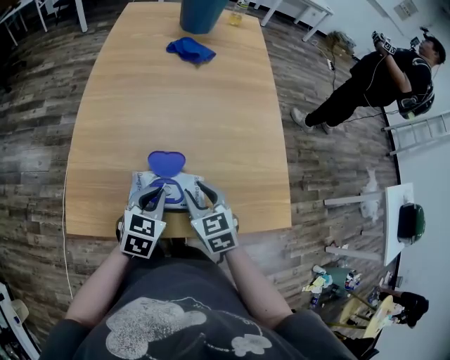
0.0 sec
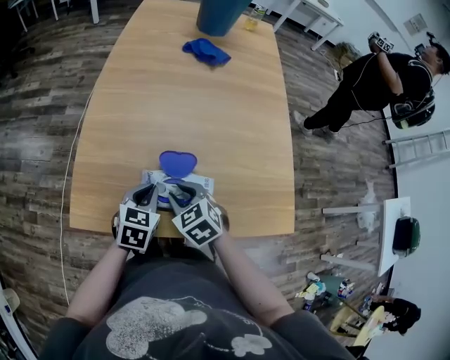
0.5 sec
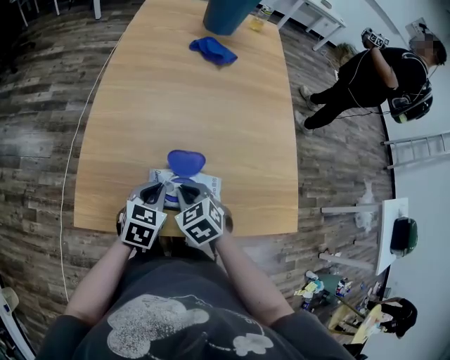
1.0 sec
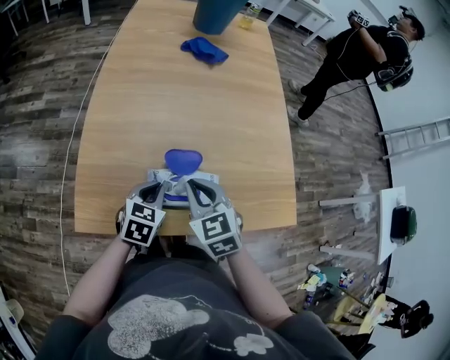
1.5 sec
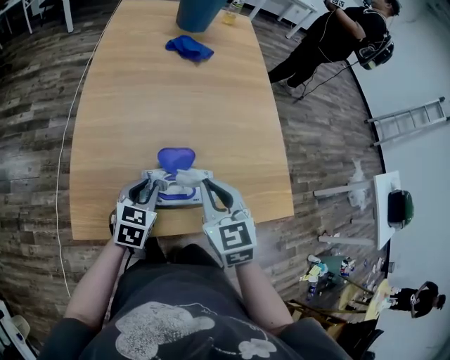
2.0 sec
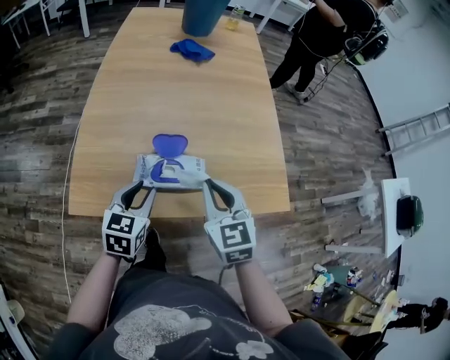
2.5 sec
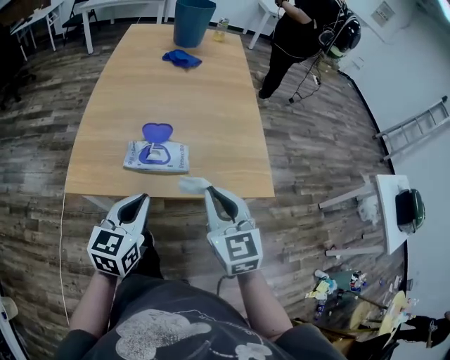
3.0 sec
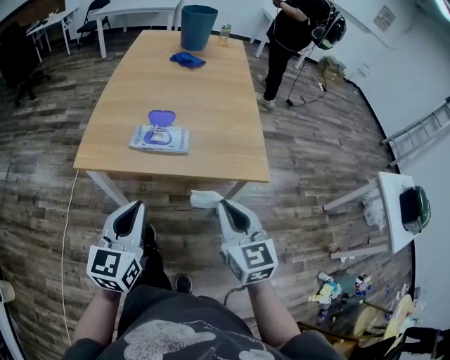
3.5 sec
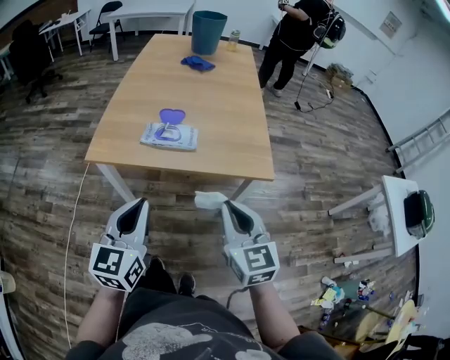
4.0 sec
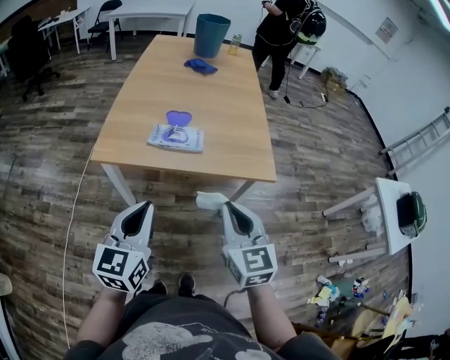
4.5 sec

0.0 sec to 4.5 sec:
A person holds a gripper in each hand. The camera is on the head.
0.0 sec to 2.0 sec: The right gripper moves upward, approximately 10 cm, and closes up, while the left gripper travels to the left by about 5 cm, and opens its fingers.
2.0 sec to 4.5 sec: The left gripper is displaced backward and upward by some 40 cm, changes its angle by about 30 degrees, and closes. Meanwhile the right gripper shifts some 30 cm backward.

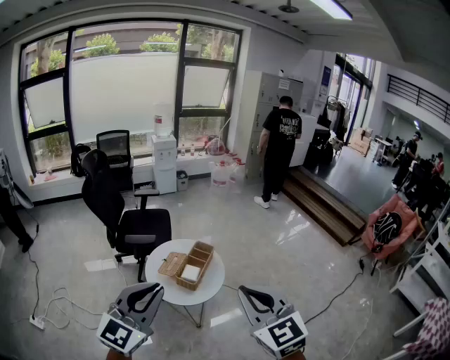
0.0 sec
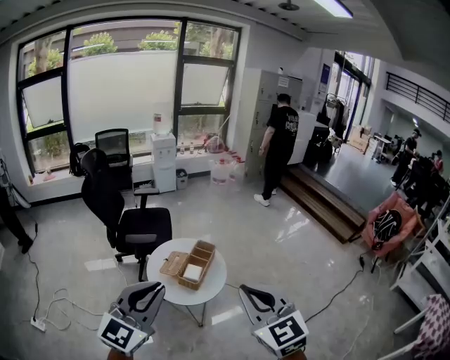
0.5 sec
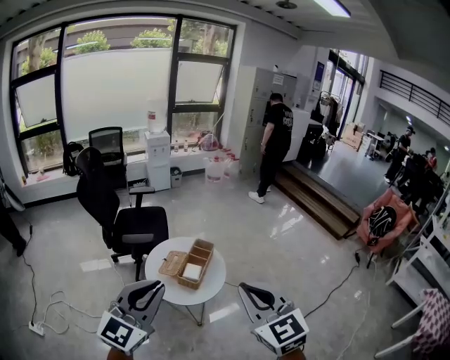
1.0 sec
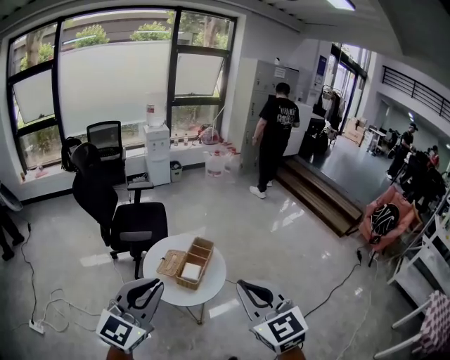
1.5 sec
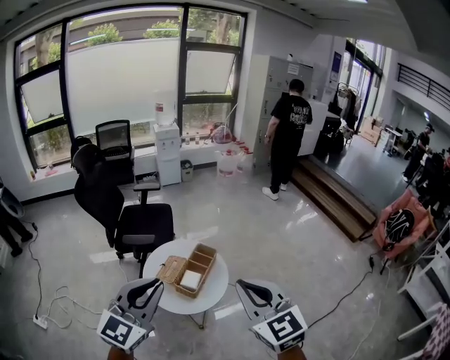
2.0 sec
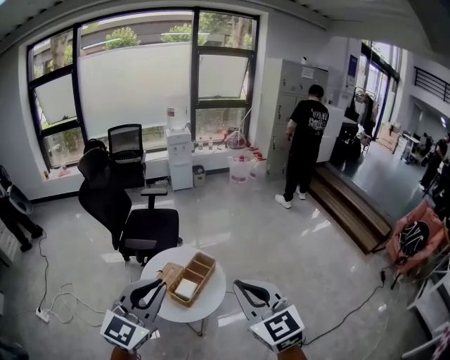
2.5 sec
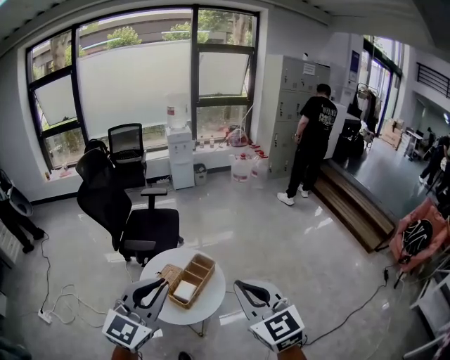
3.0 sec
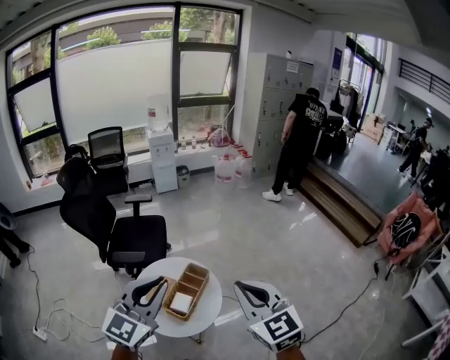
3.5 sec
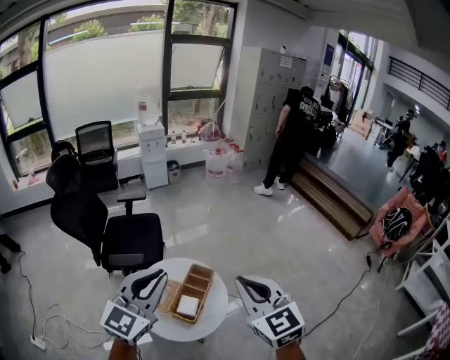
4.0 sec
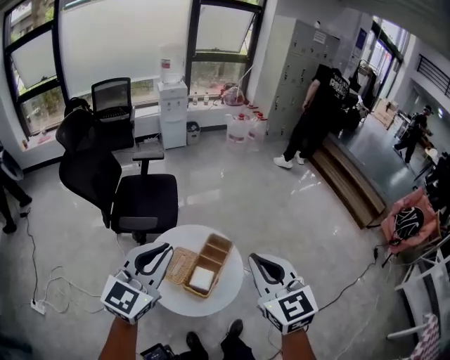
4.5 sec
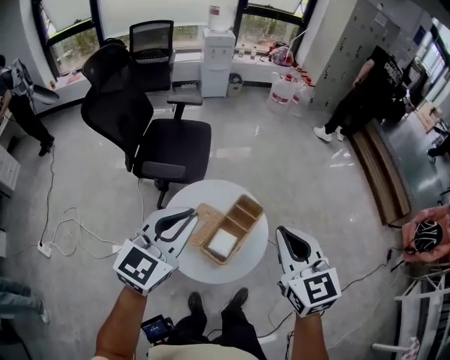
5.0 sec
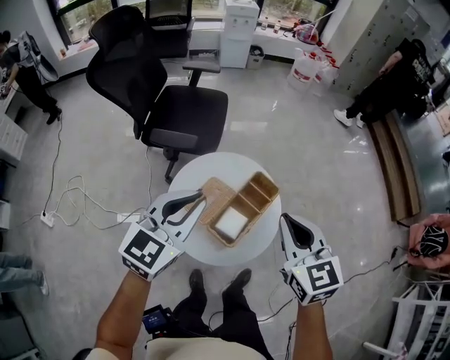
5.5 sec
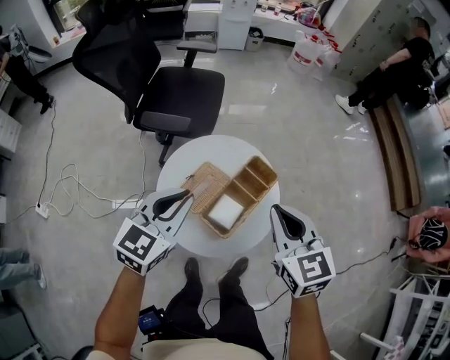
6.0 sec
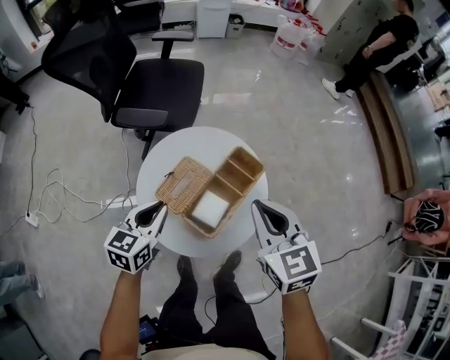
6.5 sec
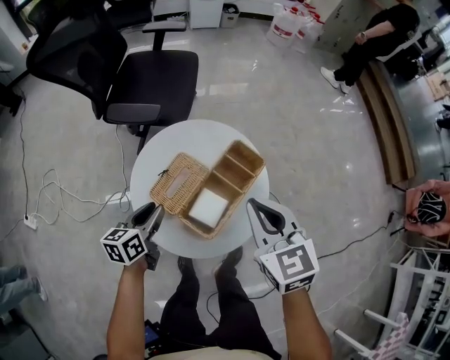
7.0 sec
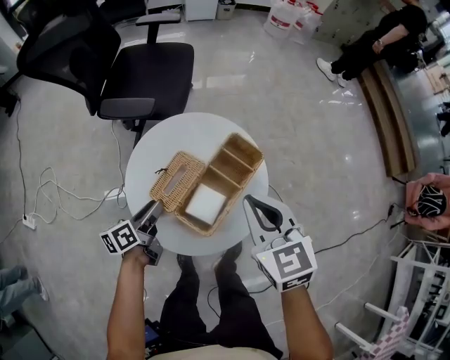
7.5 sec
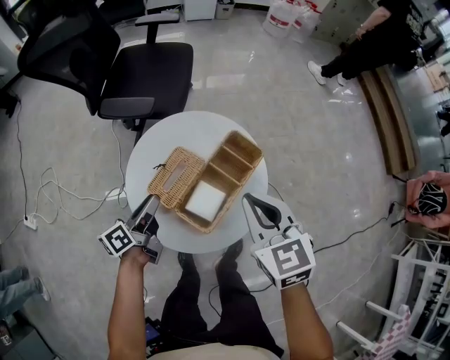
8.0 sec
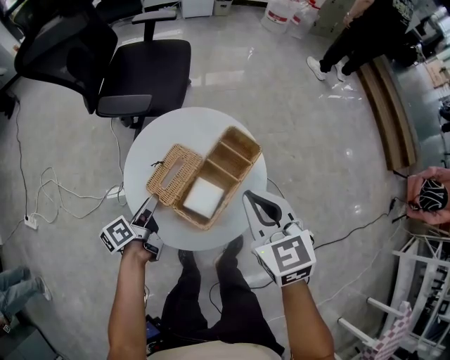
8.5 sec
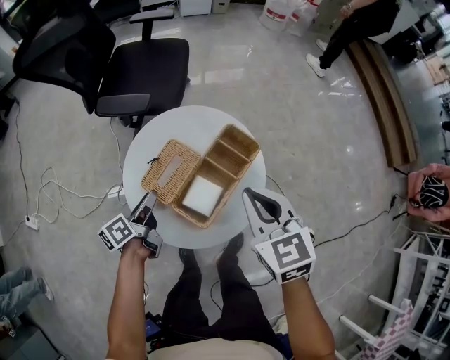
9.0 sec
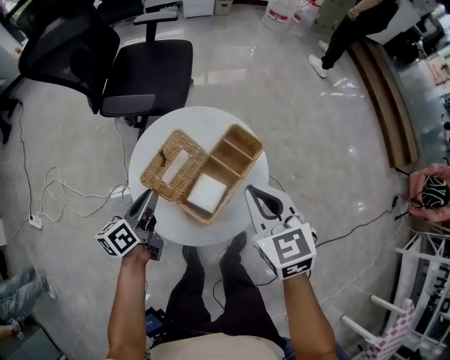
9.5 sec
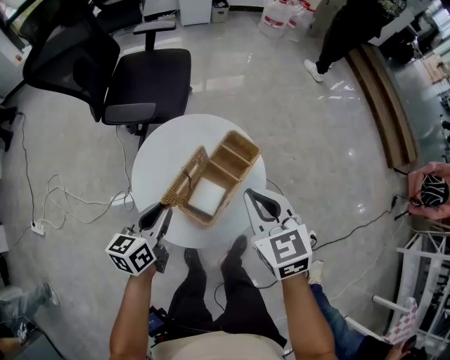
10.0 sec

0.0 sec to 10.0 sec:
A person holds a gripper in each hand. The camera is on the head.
0.0 sec to 2.0 sec: Both grippers move forward, some 15 cm.
2.0 sec to 4.0 sec: Both grippers move forward, some 20 cm.
4.0 sec to 6.0 sec: The right gripper travels downward and forward by roughly 30 cm; the left gripper heads downward, covering approximately 30 cm, and changes its angle by about 30 degrees.
6.0 sec to 8.0 sec: The right gripper goes roughly 10 cm downward. Meanwhile the left gripper heads downward, covering approximately 25 cm, rotates around the line of its fingers by approximately 60 degrees, counterclockwise from behind, and opens.
8.0 sec to 10.0 sec: The left gripper shifts about 5 cm upward, turns by roughly 30 degrees, and closes its fingers.

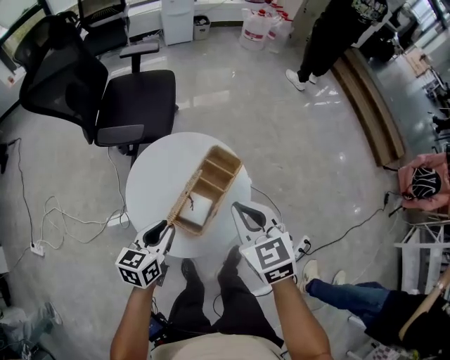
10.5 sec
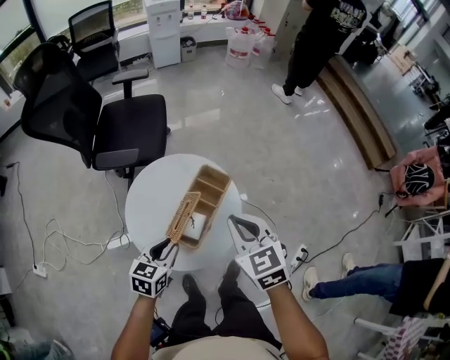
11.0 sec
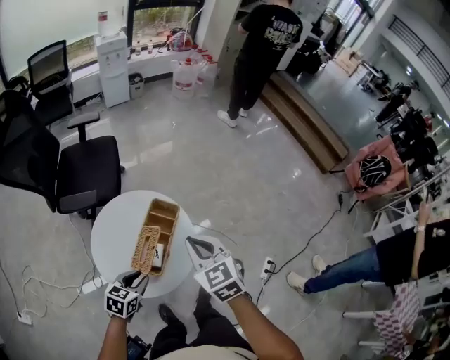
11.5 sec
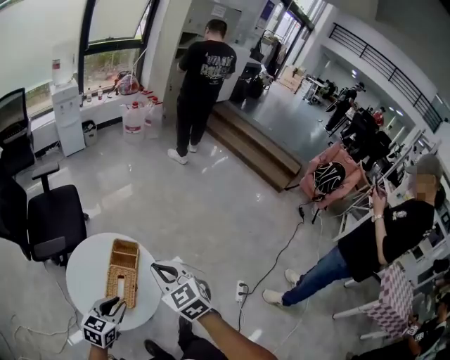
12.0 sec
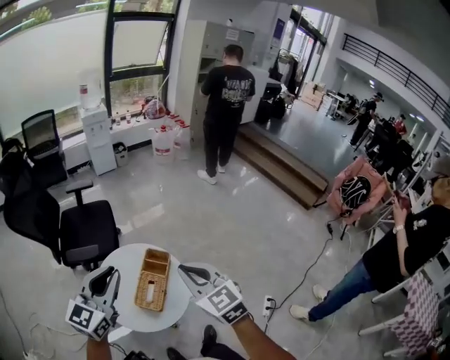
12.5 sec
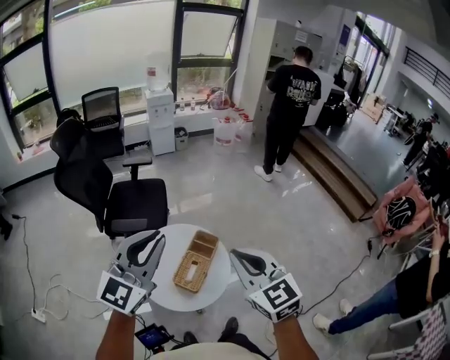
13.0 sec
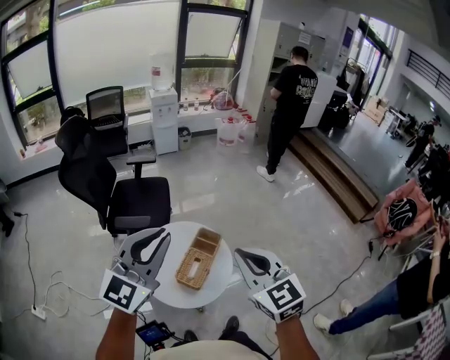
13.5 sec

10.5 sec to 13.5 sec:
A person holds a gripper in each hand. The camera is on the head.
10.5 sec to 12.0 sec: The right gripper shifts some 15 cm upward and to the right. Meanwhile the left gripper is displaced to the right and upward by about 15 cm, and changes its angle by about 30 degrees.
12.0 sec to 13.5 sec: The right gripper travels upward and backward by approximately 20 cm. The left gripper travels upward by some 35 cm, and tips its fingers upward by approximately 40 degrees.

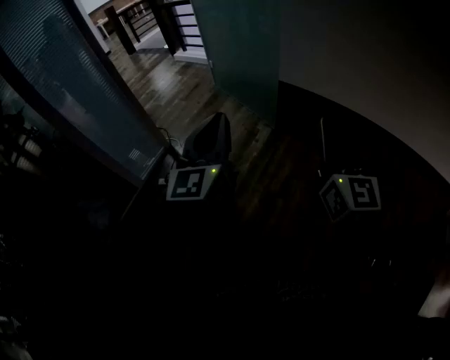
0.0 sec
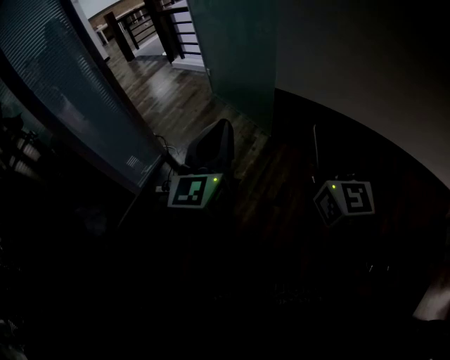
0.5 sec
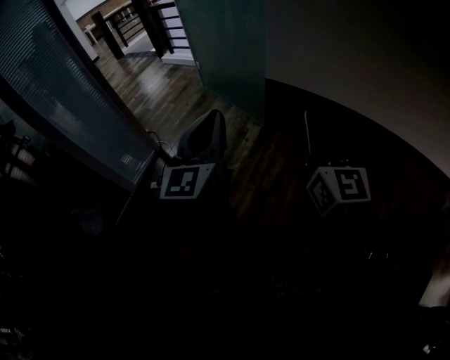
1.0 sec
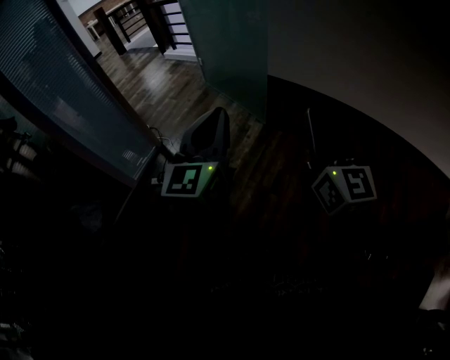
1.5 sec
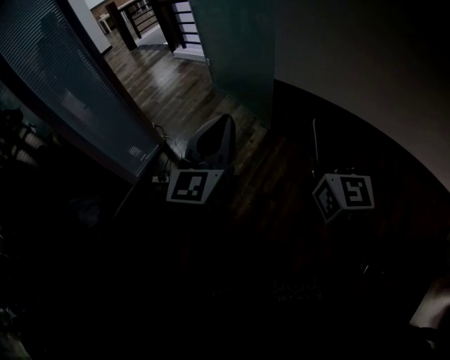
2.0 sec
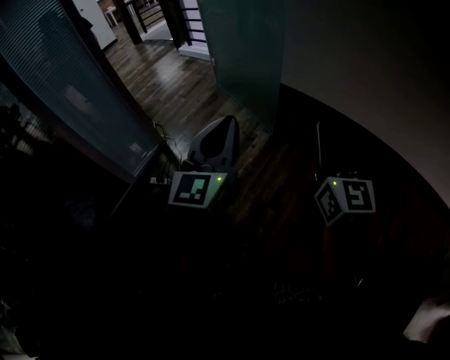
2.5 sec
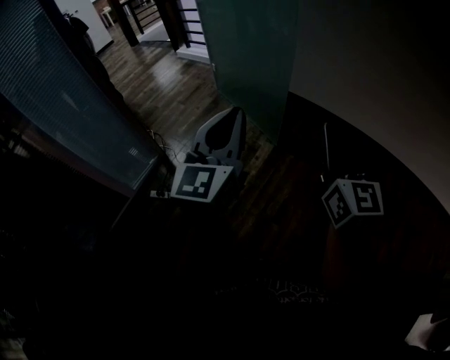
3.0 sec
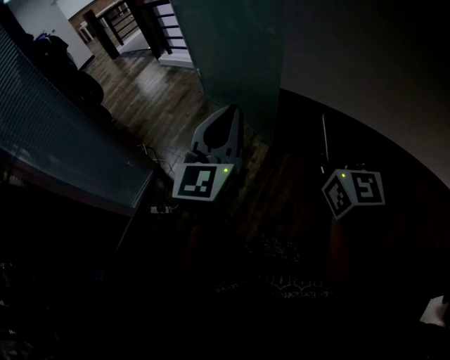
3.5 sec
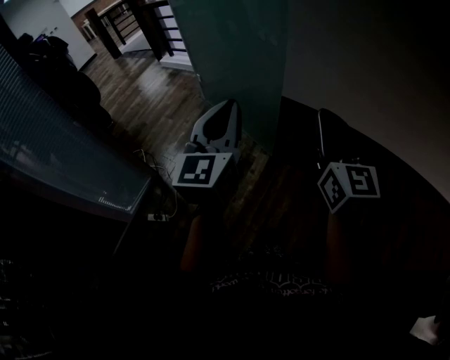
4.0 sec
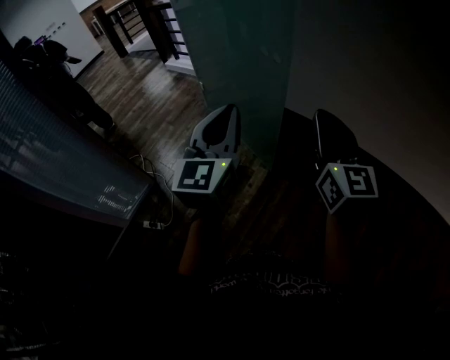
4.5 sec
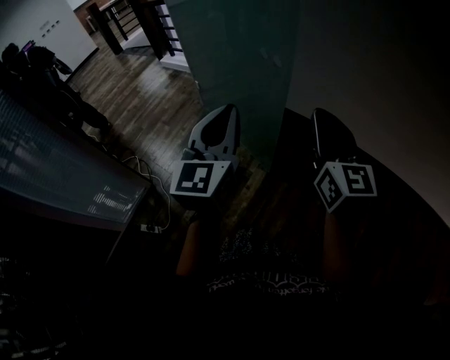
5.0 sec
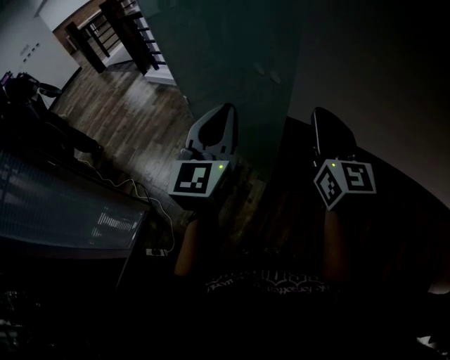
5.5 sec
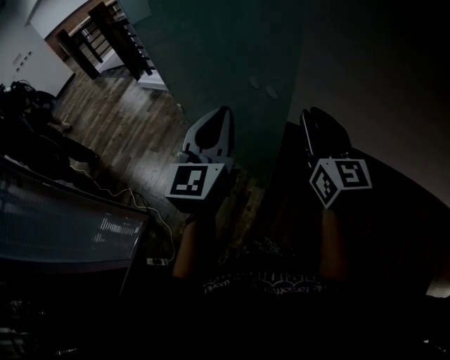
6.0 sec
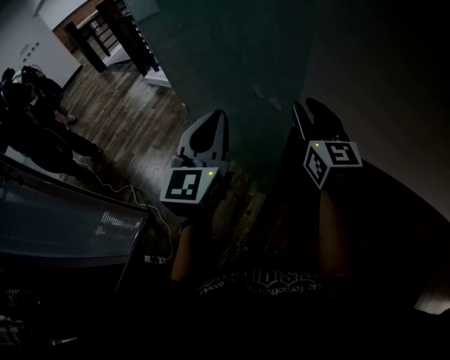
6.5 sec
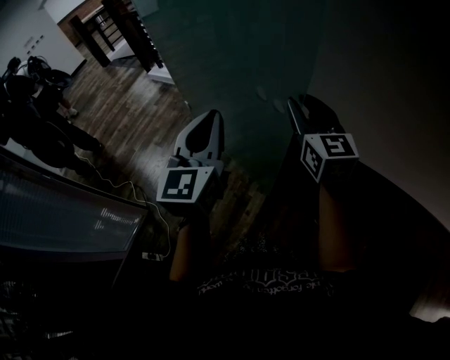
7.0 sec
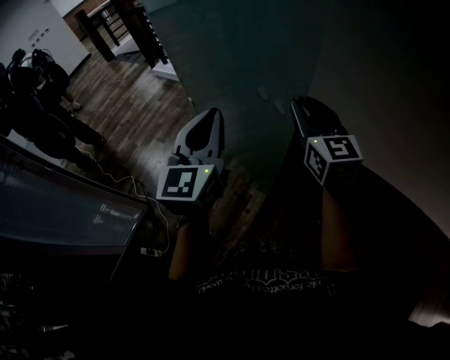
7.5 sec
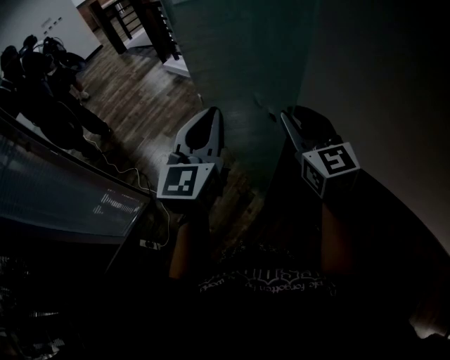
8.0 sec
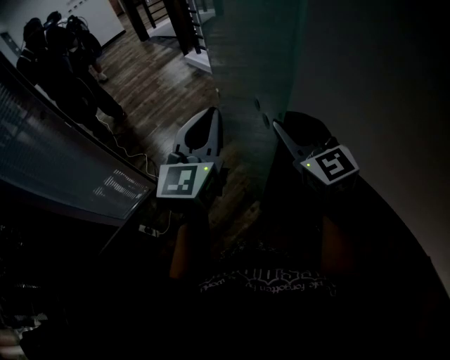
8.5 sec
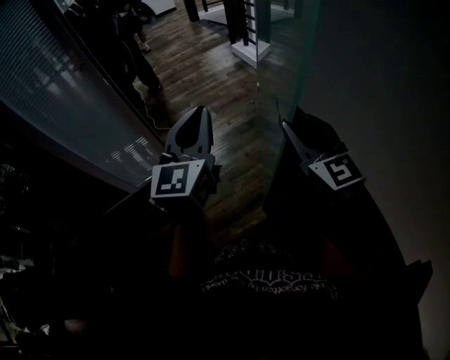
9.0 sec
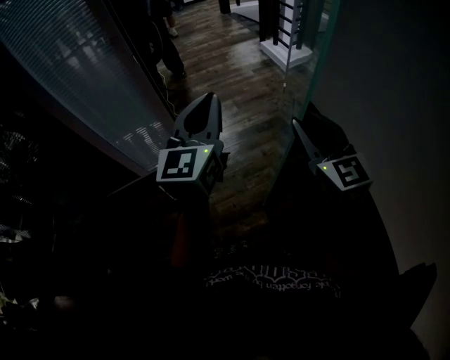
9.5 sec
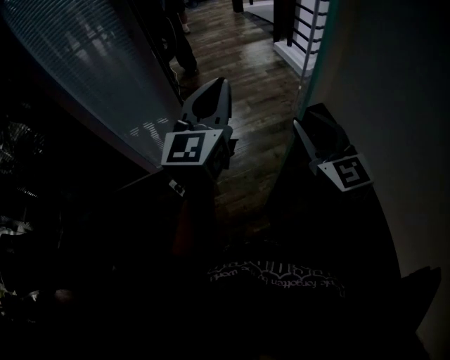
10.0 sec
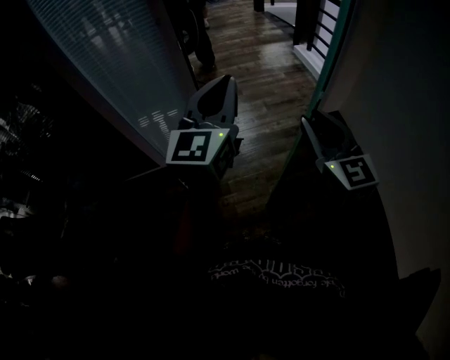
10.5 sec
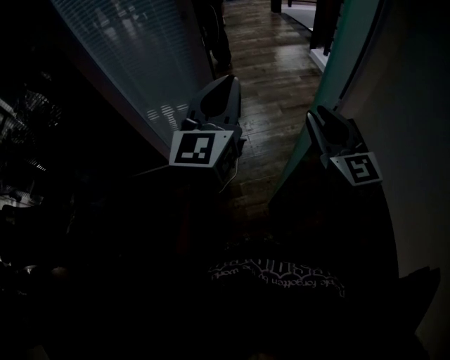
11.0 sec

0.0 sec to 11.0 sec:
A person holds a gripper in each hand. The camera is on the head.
0.0 sec to 2.0 sec: The right gripper changes place by approximately 5 cm, while the left gripper moves to the right, roughly 5 cm.
2.0 sec to 3.5 sec: Both grippers travel together forward, about 25 cm.
3.5 sec to 5.5 sec: Both grippers move forward, some 35 cm.
5.5 sec to 7.5 sec: The left gripper is displaced forward by roughly 10 cm, while the right gripper goes approximately 15 cm forward.
7.5 sec to 9.0 sec: The right gripper shifts by roughly 20 cm, and swivels about 40 degrees, while the left gripper shifts by approximately 20 cm, and changes its angle by roughly 30 degrees.
9.0 sec to 11.0 sec: The grippers both shift to the left and forward by approximately 30 cm.
